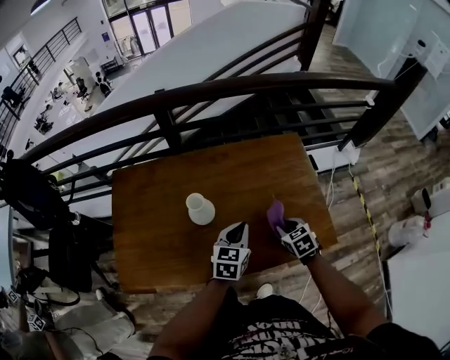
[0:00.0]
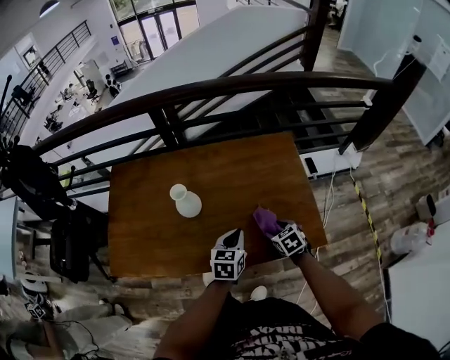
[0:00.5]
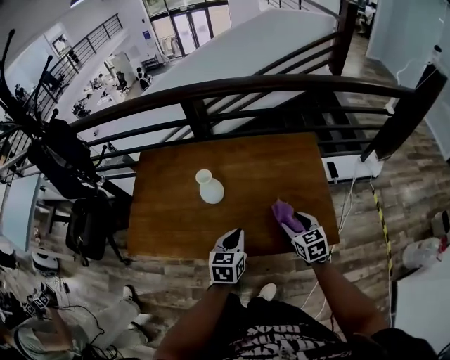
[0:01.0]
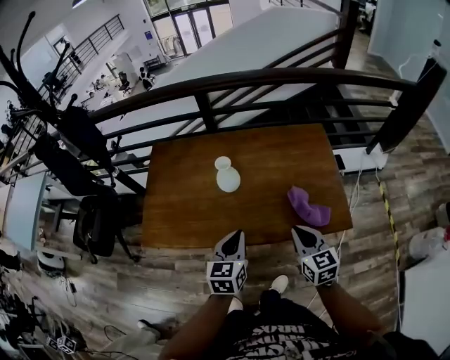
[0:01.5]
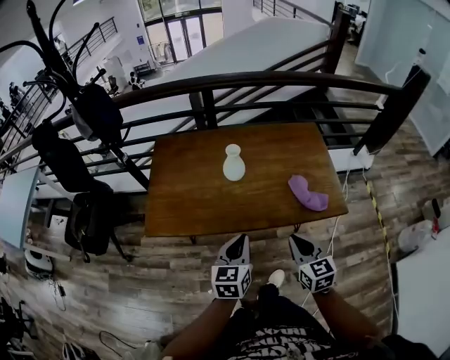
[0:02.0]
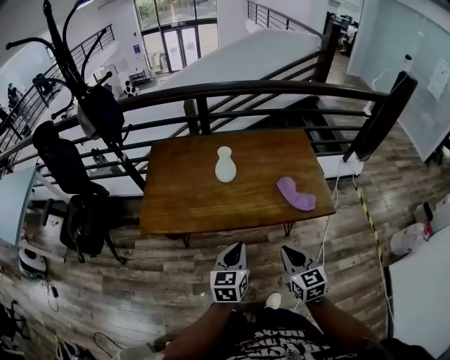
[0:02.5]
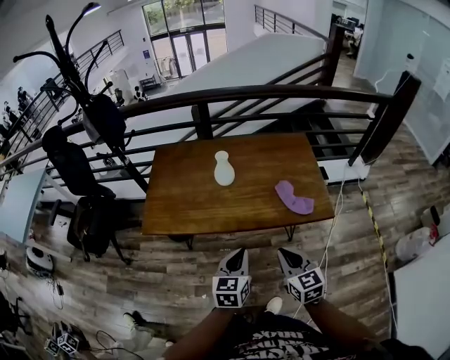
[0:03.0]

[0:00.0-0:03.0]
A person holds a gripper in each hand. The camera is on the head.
0:00.0 to 0:01.5: The left gripper shifts approximately 20 cm backward and to the left. The right gripper moves backward and upward, approximately 20 cm, swivels approximately 30 degrees, and opens, then closes again.
0:01.5 to 0:03.0: Both grippers move backward, approximately 20 cm.

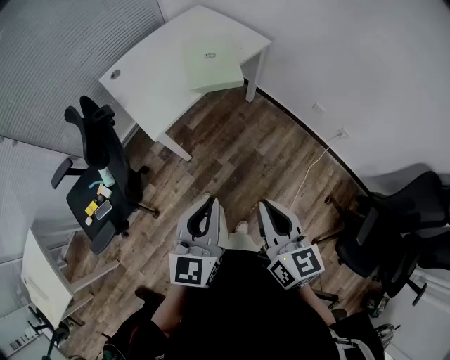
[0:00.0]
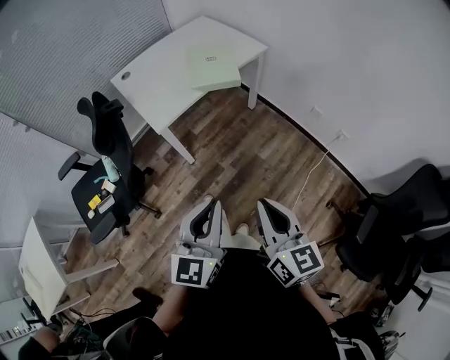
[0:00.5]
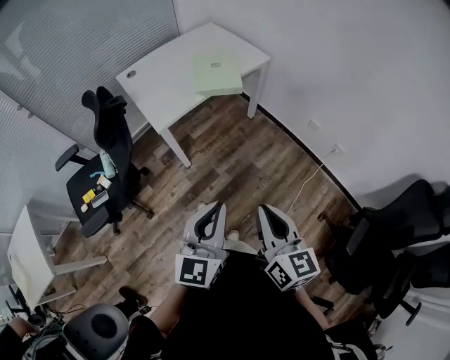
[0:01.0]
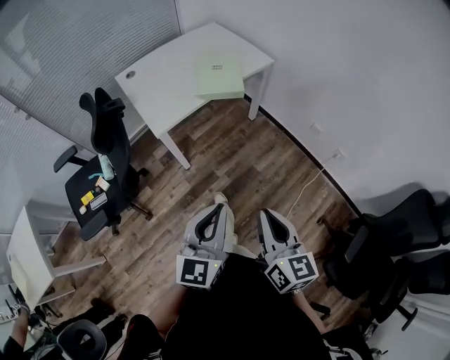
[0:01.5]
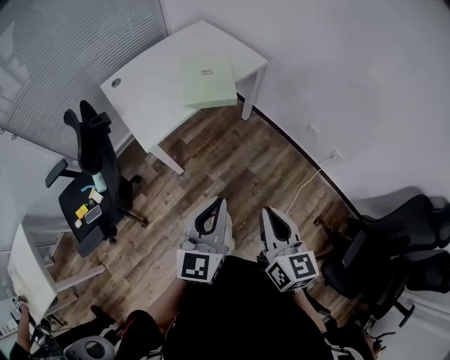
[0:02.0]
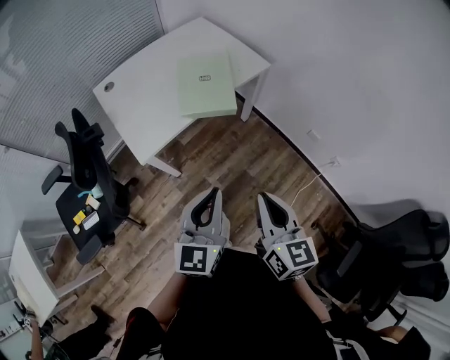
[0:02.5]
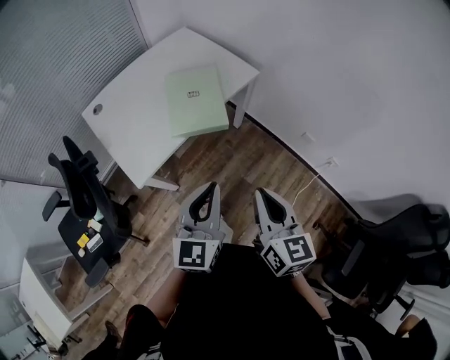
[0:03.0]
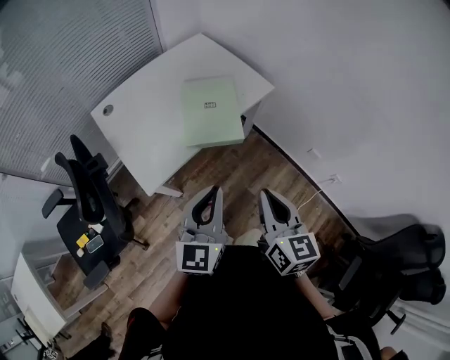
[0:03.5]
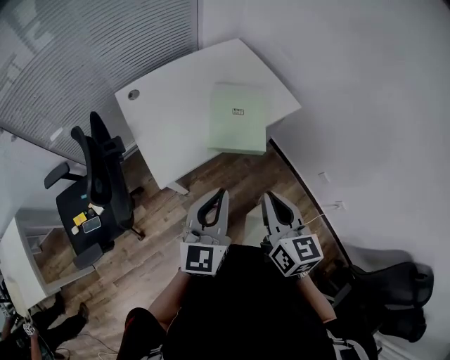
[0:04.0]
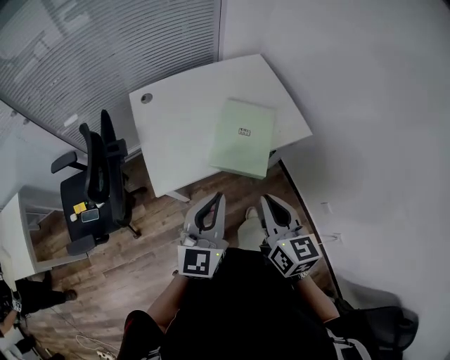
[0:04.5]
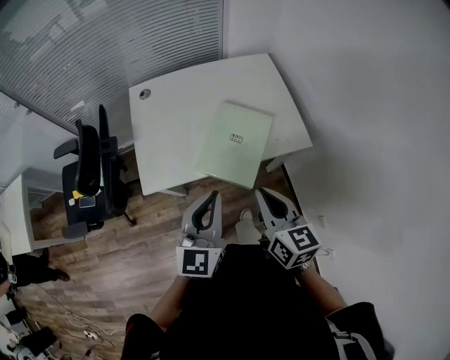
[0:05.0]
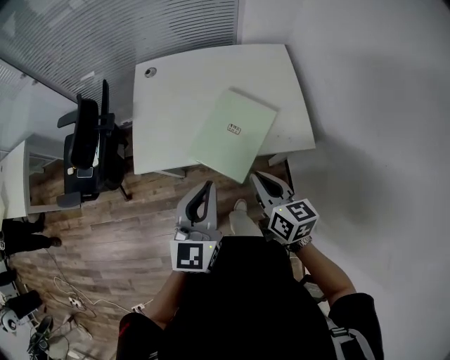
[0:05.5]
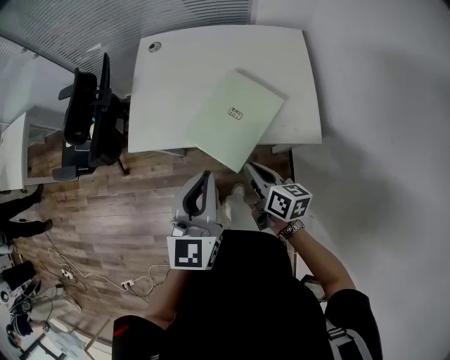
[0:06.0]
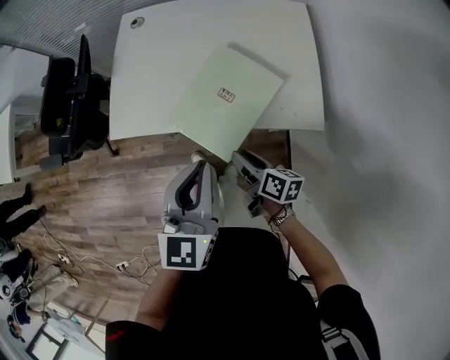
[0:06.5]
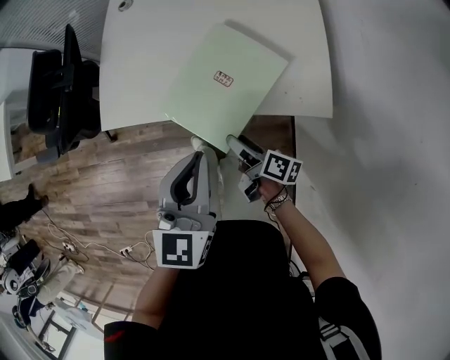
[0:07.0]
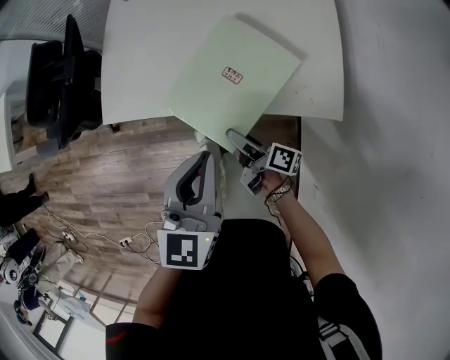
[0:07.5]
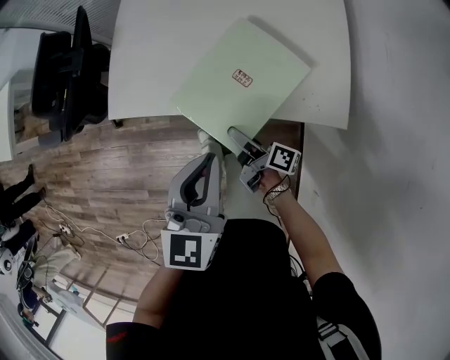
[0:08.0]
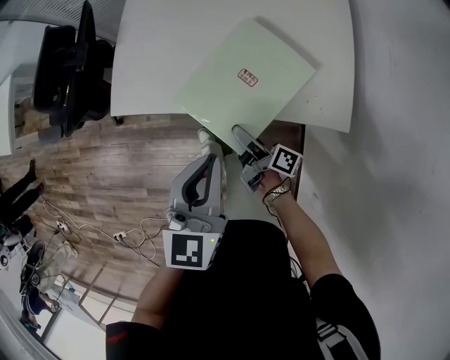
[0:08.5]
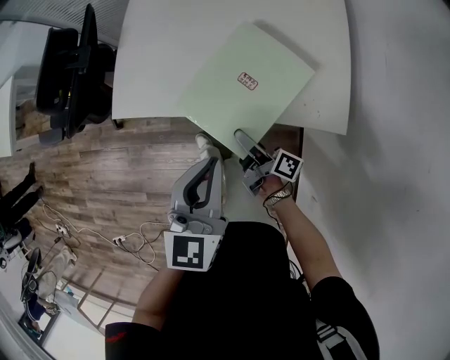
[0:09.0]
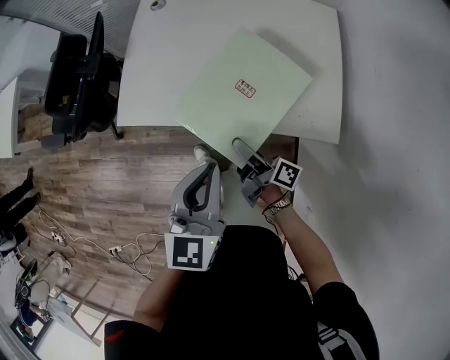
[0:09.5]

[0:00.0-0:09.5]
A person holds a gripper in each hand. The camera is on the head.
0:00.0 to 0:02.0: Both grippers travel together to the right, about 5 cm. The right gripper reaches roughly 10 cm backward, then returns. The left gripper moves approximately 10 cm backward and comes back.
0:02.0 to 0:04.0: Both grippers travel together forward, roughly 25 cm.
0:04.0 to 0:05.5: The right gripper ends up approximately 25 cm from where it was, and rotates approximately 40 degrees, while the left gripper changes place by about 20 cm, and turns by about 30 degrees.
0:05.5 to 0:07.5: The left gripper is displaced downward and to the right by about 10 cm. The right gripper shifts roughly 25 cm downward, rotates around the line of its fingers by approximately 50 degrees, clockwise from behind, and opens.
0:07.5 to 0:09.5: The right gripper heads upward, covering about 5 cm.

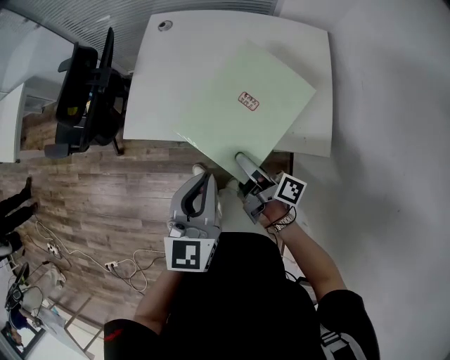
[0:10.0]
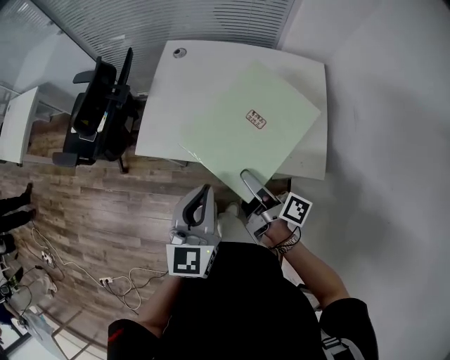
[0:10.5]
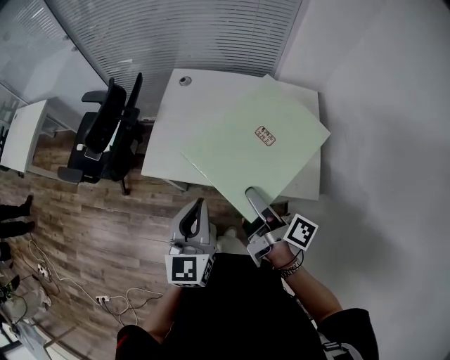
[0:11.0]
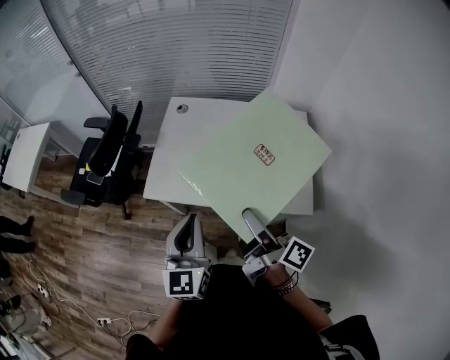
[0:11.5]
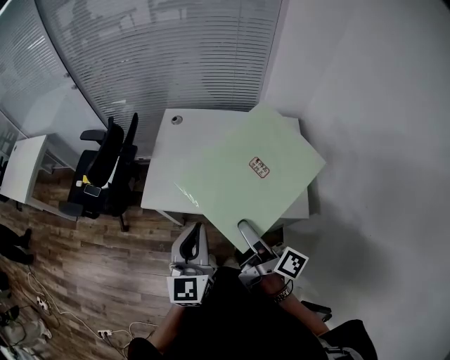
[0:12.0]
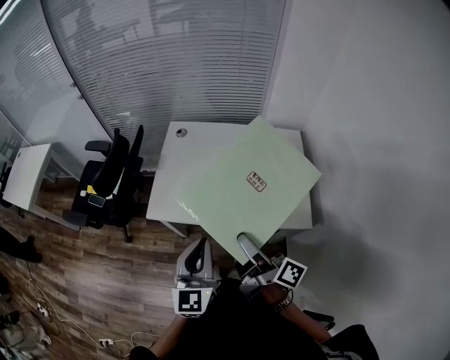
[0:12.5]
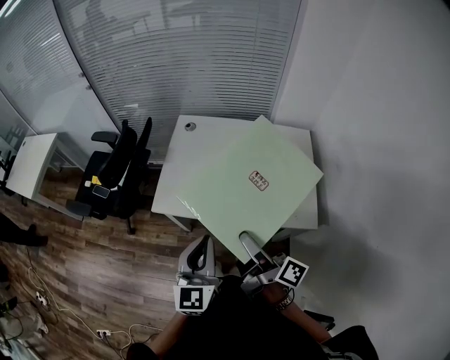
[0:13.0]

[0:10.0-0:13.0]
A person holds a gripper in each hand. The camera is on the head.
0:10.0 to 0:11.5: The right gripper heads upward, covering approximately 20 cm, while the left gripper goes approximately 10 cm upward and to the left.
0:11.5 to 0:13.0: The grippers make only small movements.

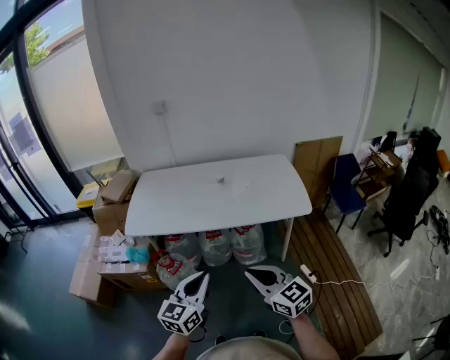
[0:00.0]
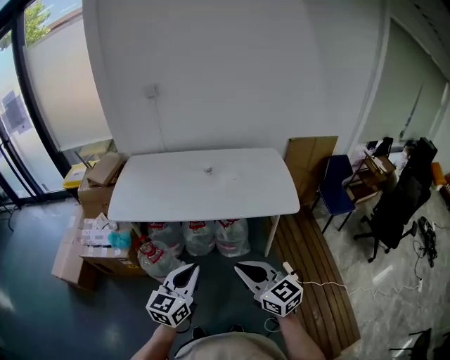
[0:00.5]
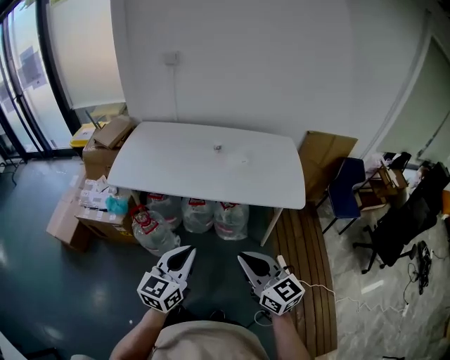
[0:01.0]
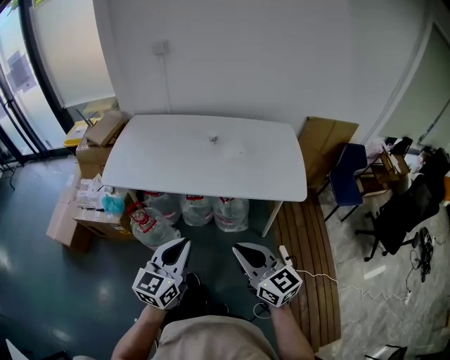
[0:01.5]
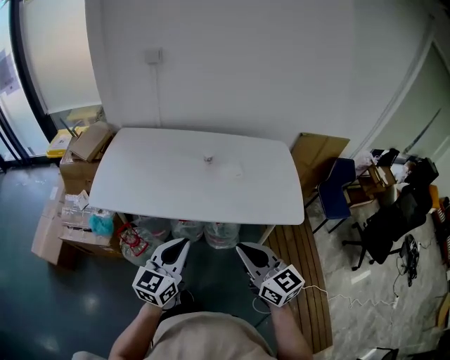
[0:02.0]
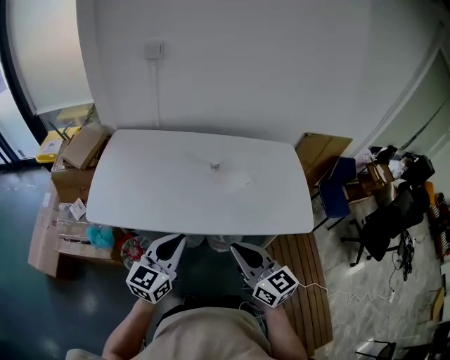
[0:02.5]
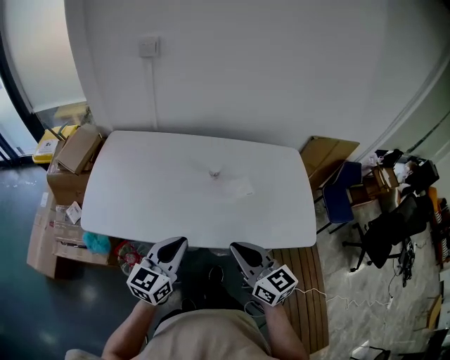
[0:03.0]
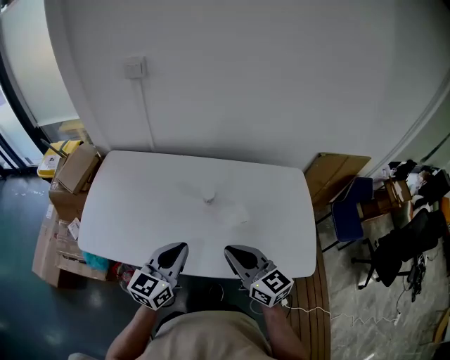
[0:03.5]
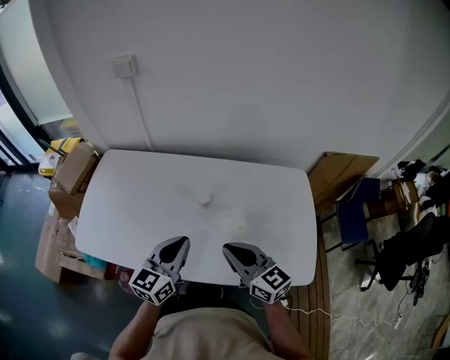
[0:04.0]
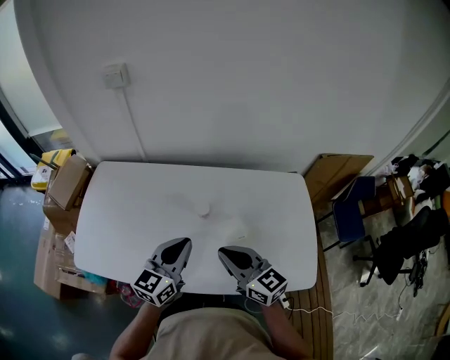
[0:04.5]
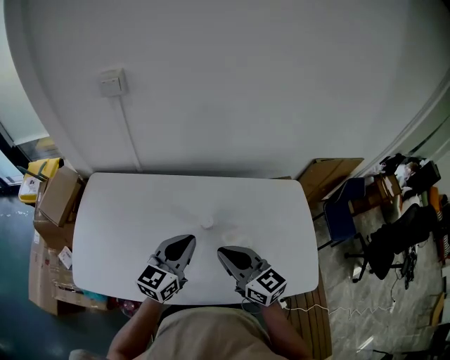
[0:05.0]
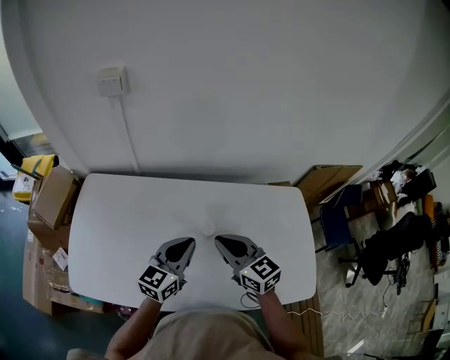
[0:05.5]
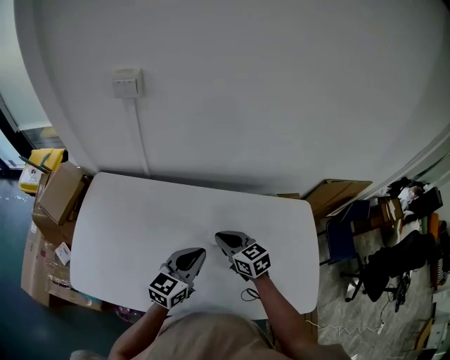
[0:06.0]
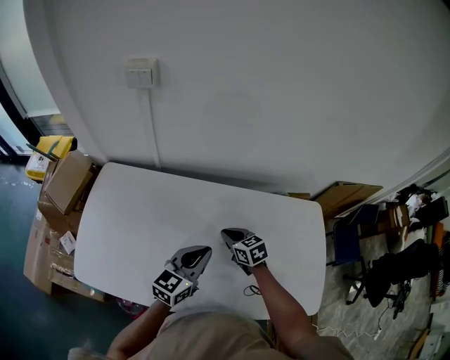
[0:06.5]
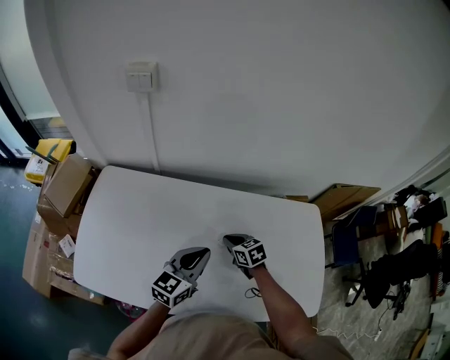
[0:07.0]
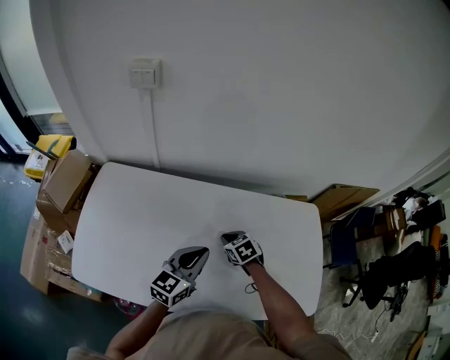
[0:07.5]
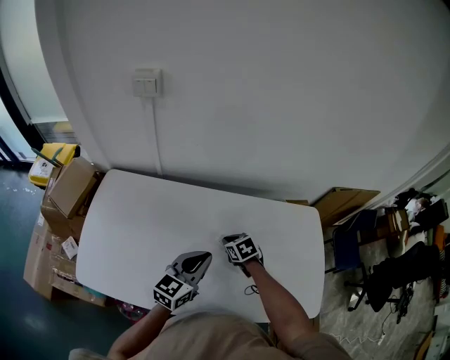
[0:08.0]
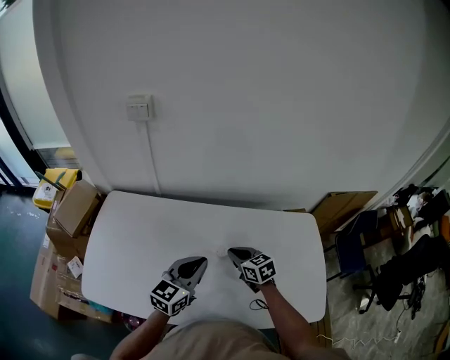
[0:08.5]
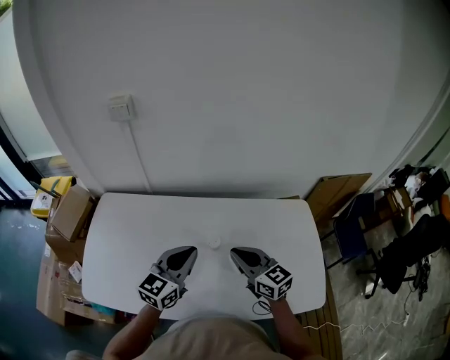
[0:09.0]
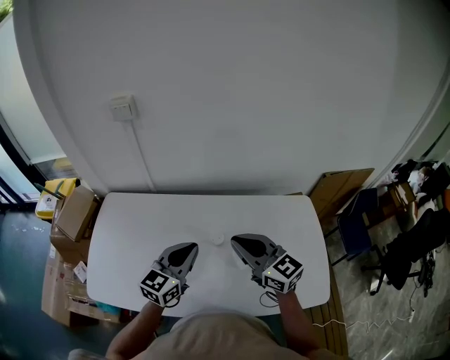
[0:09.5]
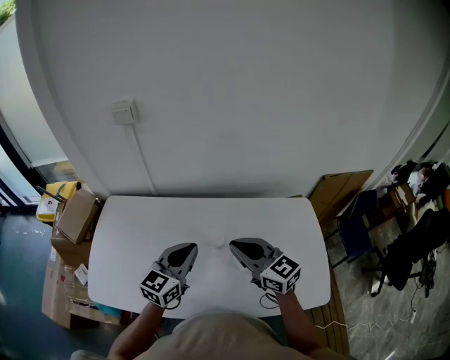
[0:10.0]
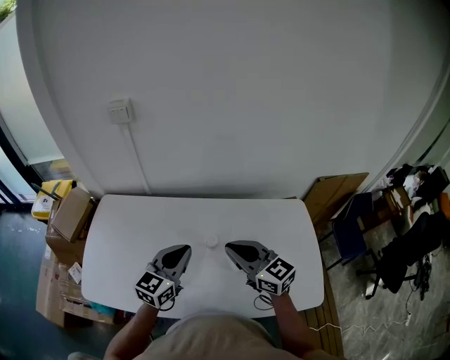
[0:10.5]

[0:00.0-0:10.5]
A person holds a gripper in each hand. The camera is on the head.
0:00.0 to 0:02.0: Both grippers move forward, about 15 cm.
0:02.0 to 0:04.0: The grippers both shift forward by roughly 30 cm.
0:04.0 to 0:06.5: The right gripper moves forward and downward, approximately 30 cm, and tilts its fingers roughly 30 degrees downward, while the left gripper heads forward, covering about 15 cm.
0:06.5 to 0:08.5: The right gripper ends up about 5 cm from where it was.
0:08.5 to 0:10.5: The right gripper goes approximately 20 cm upward and backward, and changes its angle by approximately 30 degrees.
